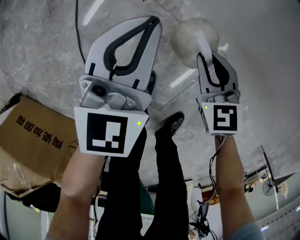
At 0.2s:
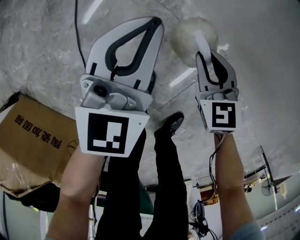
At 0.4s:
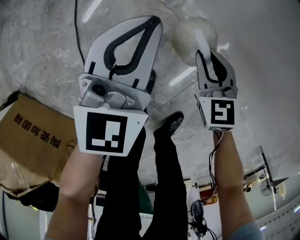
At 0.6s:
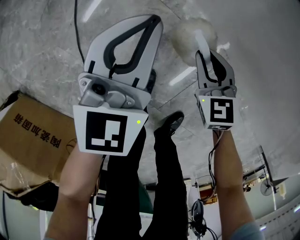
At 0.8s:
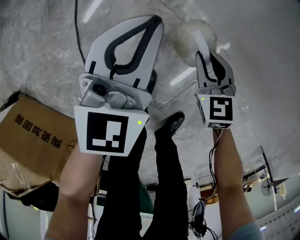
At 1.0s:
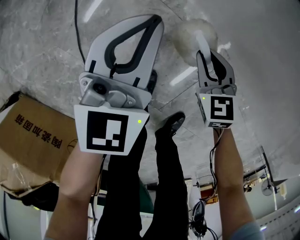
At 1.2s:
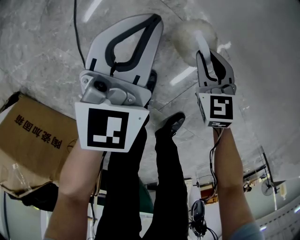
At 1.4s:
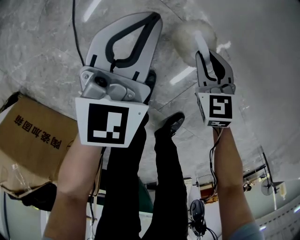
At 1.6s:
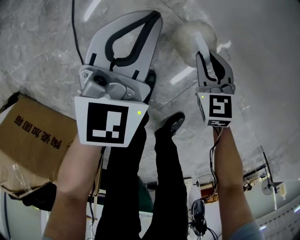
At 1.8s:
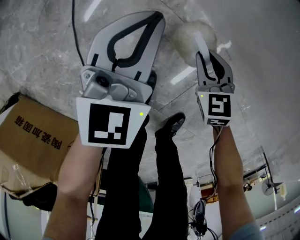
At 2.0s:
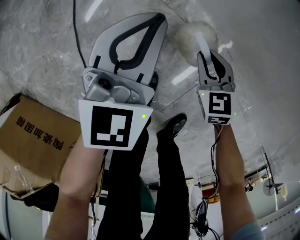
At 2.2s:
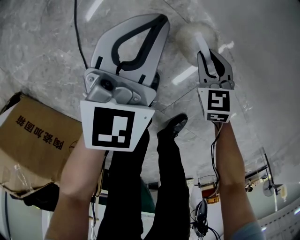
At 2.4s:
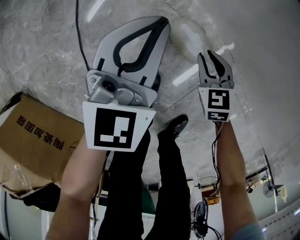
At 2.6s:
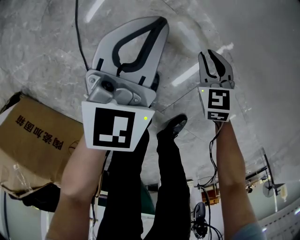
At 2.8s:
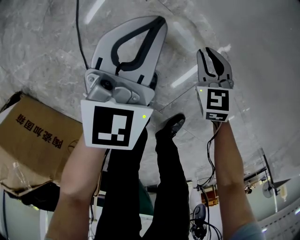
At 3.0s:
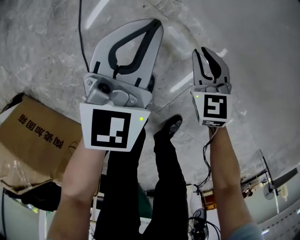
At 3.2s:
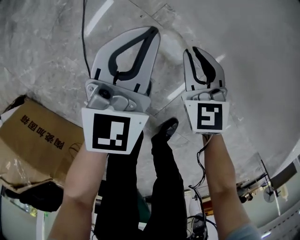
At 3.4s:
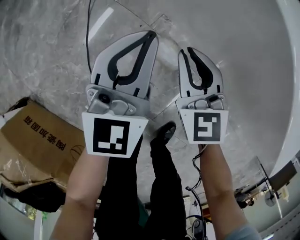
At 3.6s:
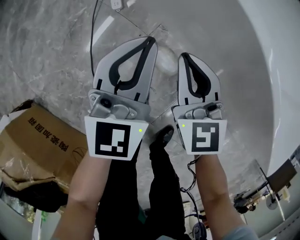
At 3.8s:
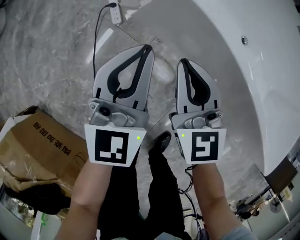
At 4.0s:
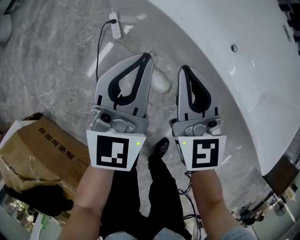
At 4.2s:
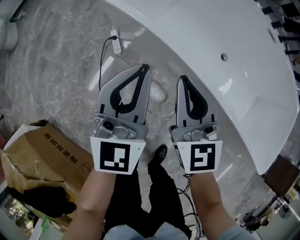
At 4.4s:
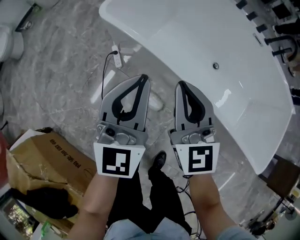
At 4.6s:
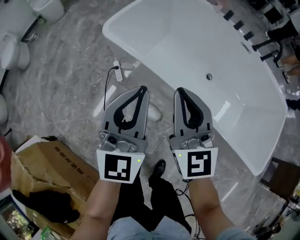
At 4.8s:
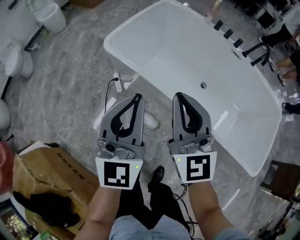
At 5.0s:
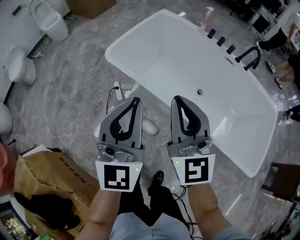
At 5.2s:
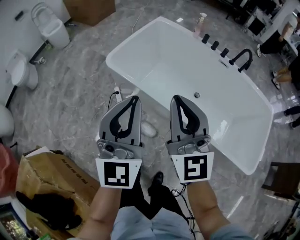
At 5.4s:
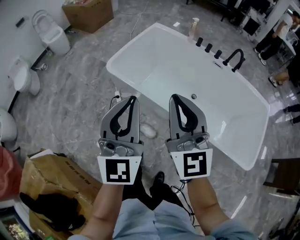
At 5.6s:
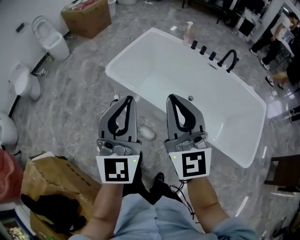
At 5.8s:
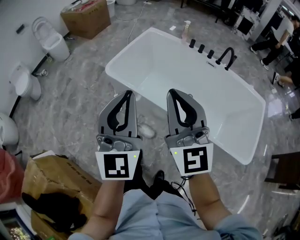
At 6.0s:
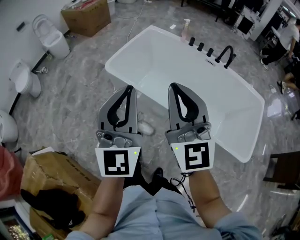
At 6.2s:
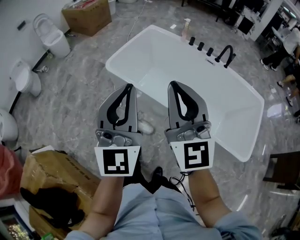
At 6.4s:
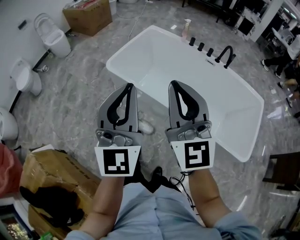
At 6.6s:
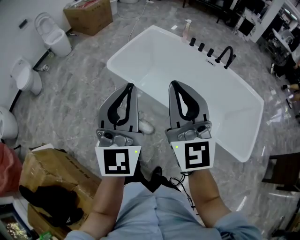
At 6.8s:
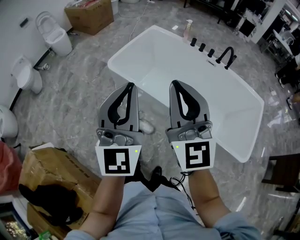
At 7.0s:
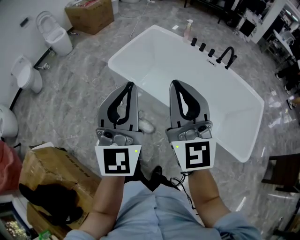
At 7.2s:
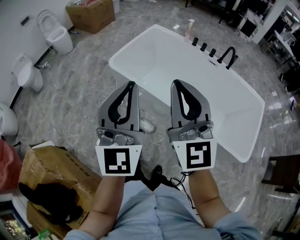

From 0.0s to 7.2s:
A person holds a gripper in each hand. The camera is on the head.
From 0.0s to 1.4s: The right gripper travels downward by roughly 5 cm.
From 1.4s to 2.8s: The grippers stay close to where they were, moving slightly.
From 2.8s to 4.4s: Both grippers move upward, approximately 60 cm. The right gripper tips its fingers upward by roughly 50 degrees; the left gripper turns by about 20 degrees.
From 4.4s to 5.8s: The two grippers go about 40 cm upward and backward. The right gripper swivels about 20 degrees.
From 5.8s to 7.2s: The grippers stay close to where they were, moving slightly.

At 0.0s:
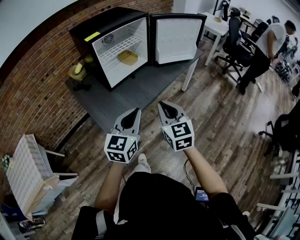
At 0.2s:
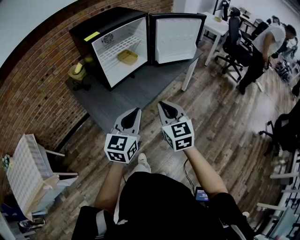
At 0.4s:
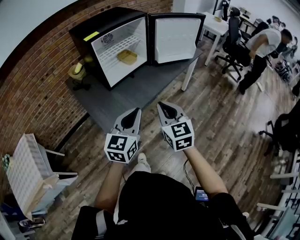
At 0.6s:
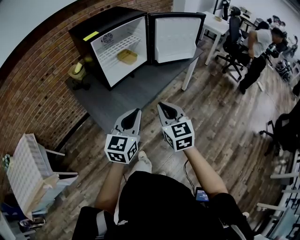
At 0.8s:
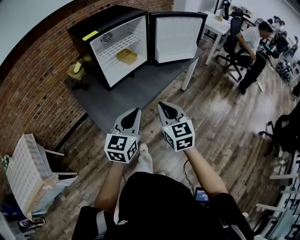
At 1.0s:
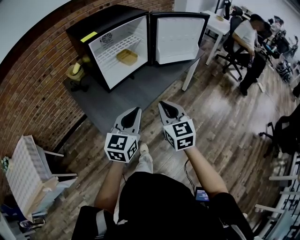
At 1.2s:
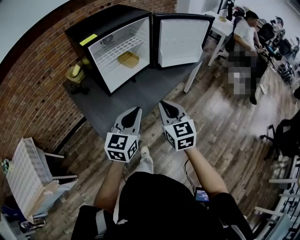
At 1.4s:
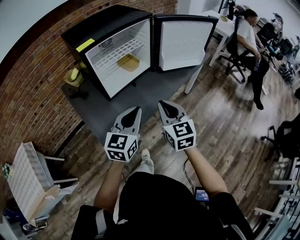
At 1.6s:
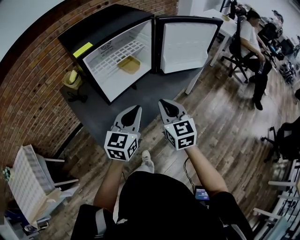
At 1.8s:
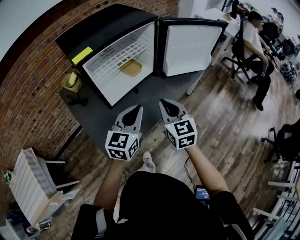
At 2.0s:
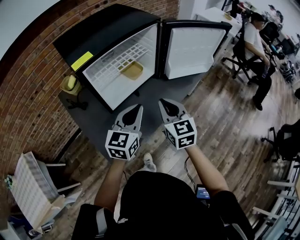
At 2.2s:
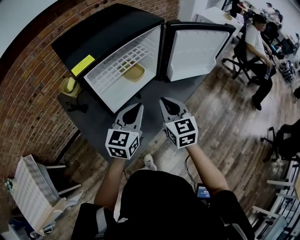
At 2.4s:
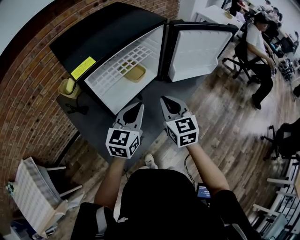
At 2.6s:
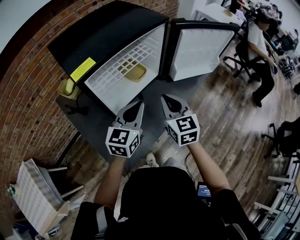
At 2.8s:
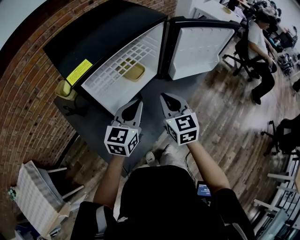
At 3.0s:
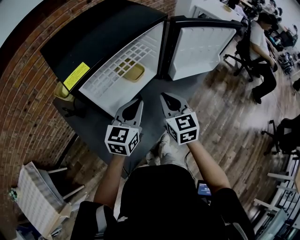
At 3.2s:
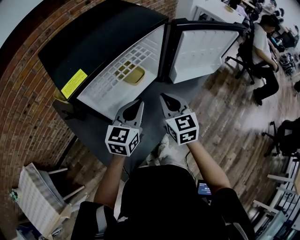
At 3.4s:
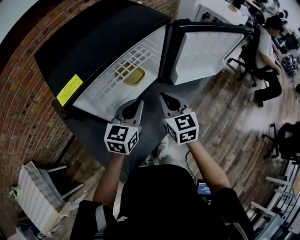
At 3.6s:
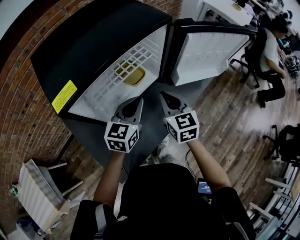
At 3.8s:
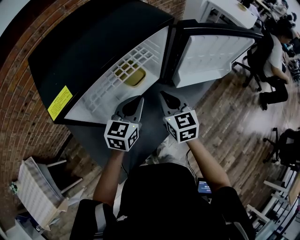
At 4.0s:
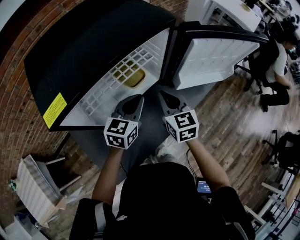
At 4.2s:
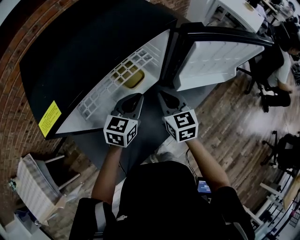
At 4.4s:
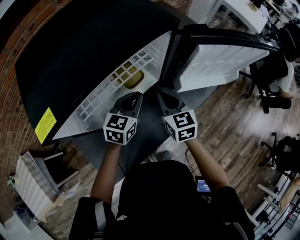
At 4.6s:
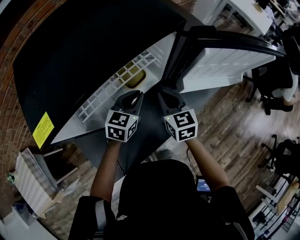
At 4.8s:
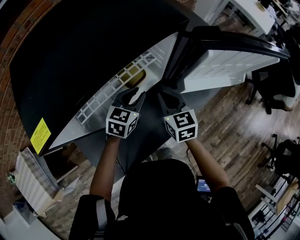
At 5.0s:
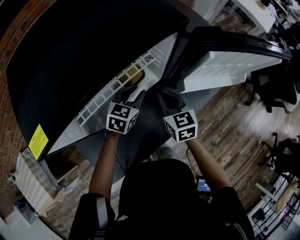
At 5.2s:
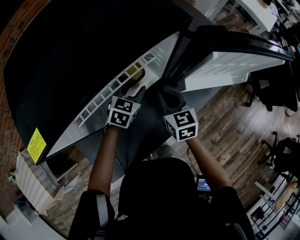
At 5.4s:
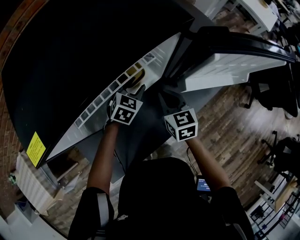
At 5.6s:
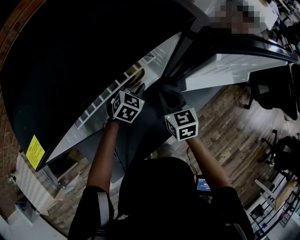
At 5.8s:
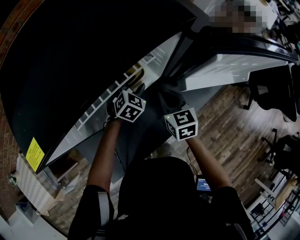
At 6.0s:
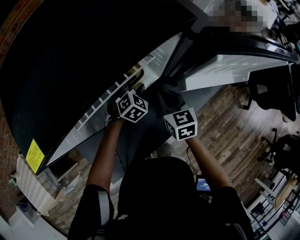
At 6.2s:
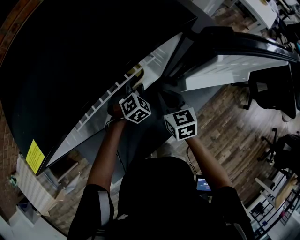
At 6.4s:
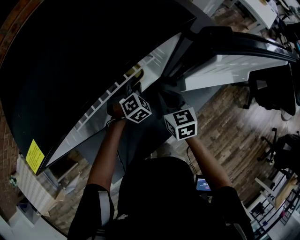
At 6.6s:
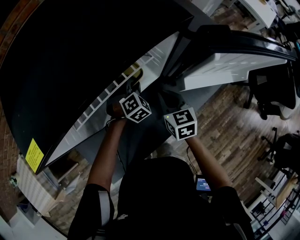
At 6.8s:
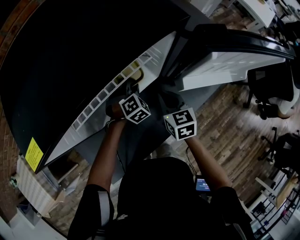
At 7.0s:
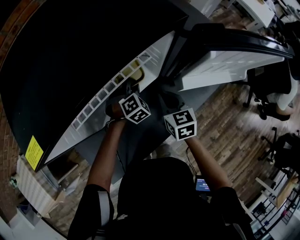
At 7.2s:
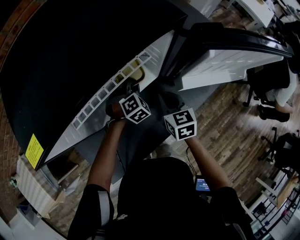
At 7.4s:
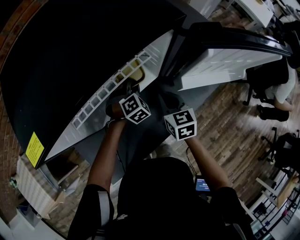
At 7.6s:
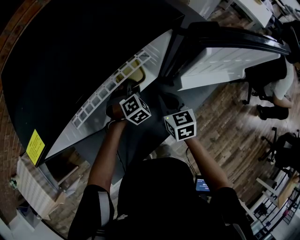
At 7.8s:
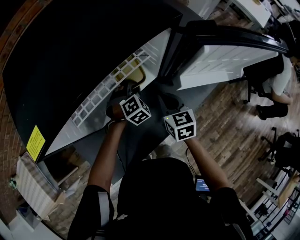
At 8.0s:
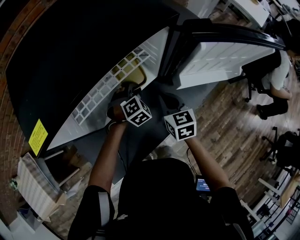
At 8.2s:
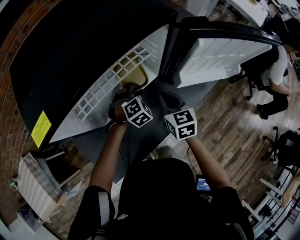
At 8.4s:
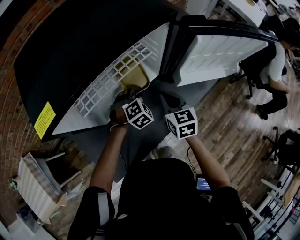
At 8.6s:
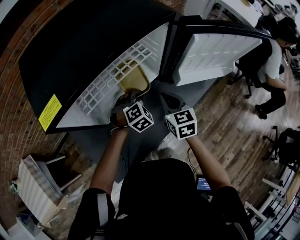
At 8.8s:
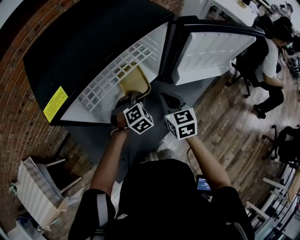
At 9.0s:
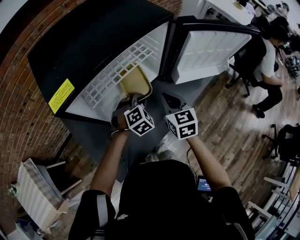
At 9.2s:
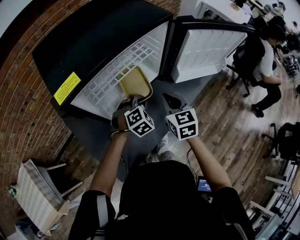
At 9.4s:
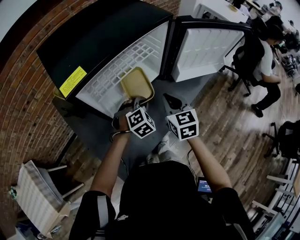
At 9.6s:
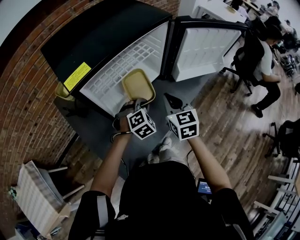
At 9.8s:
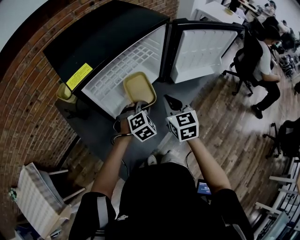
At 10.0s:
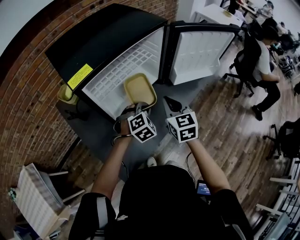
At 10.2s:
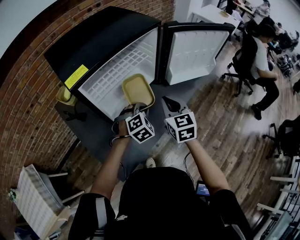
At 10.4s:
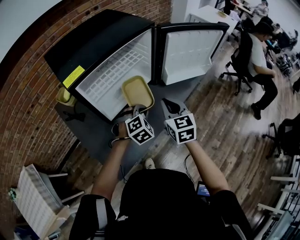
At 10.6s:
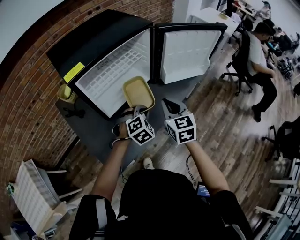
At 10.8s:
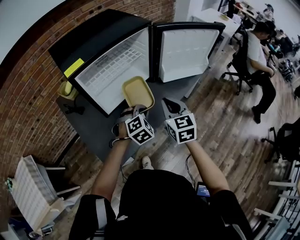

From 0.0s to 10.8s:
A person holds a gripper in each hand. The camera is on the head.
From 0.0s to 1.6s: The two grippers go some 20 cm forward.
From 1.6s to 3.0s: The grippers both shift forward by about 15 cm.
From 3.0s to 4.6s: The two grippers go some 20 cm forward and downward.
From 4.6s to 6.2s: The left gripper shifts some 15 cm downward and forward, twists some 40 degrees clockwise, seen from behind, and opens its fingers, while the right gripper heads downward, covering about 5 cm.
From 6.2s to 7.8s: The left gripper closes.
From 7.8s to 9.2s: The two grippers go about 15 cm backward and upward.
From 9.2s to 10.8s: The right gripper shifts some 15 cm backward, upward and to the right. Meanwhile the left gripper moves backward, to the right and upward, approximately 15 cm.

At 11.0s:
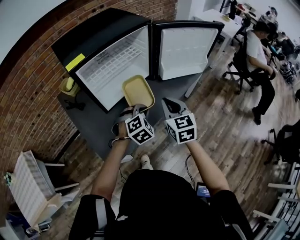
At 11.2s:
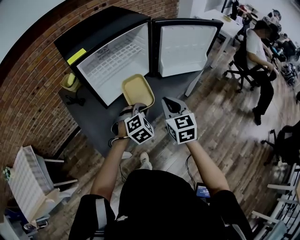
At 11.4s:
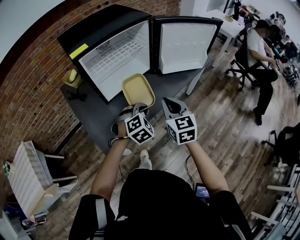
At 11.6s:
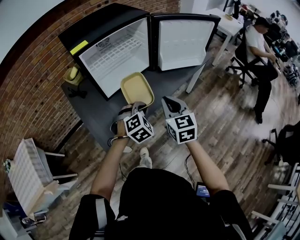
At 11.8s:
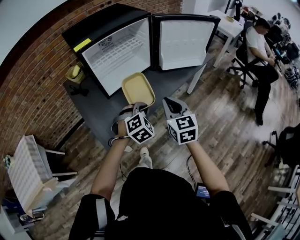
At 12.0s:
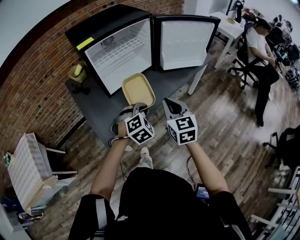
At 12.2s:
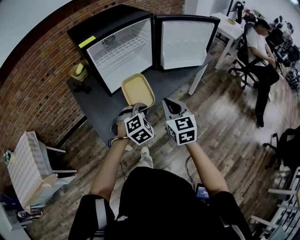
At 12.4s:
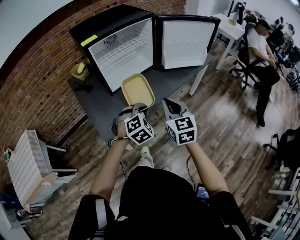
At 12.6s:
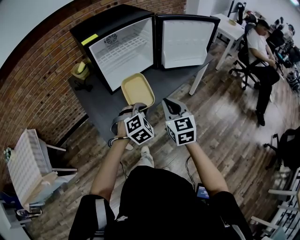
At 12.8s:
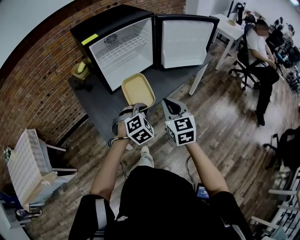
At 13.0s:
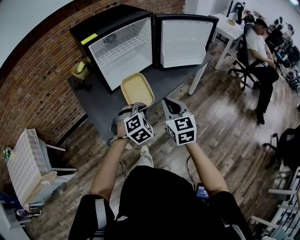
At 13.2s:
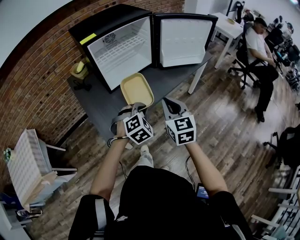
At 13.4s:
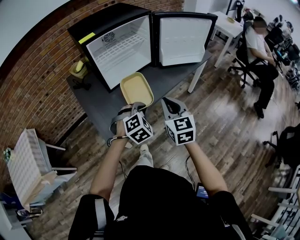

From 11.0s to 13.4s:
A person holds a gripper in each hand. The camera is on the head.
From 11.0s to 12.2s: Both grippers move backward, some 15 cm.
From 12.2s to 13.4s: The grippers move only a little.

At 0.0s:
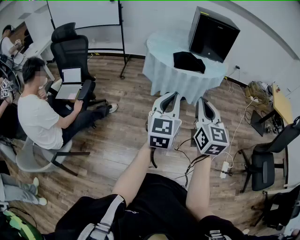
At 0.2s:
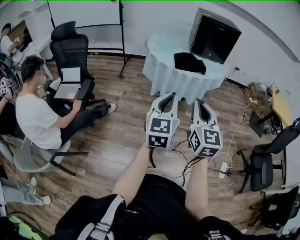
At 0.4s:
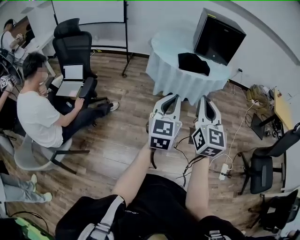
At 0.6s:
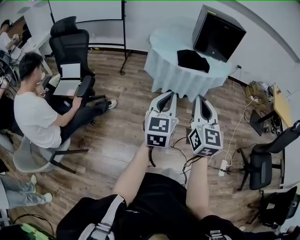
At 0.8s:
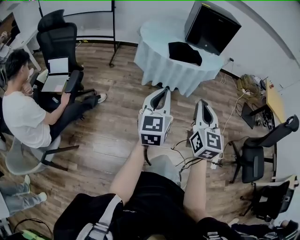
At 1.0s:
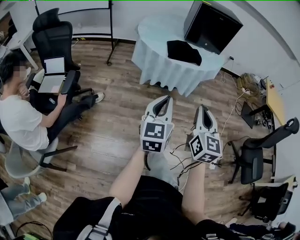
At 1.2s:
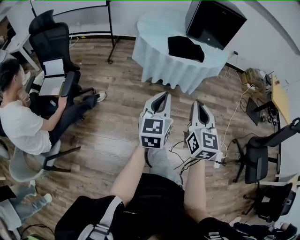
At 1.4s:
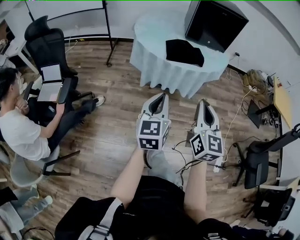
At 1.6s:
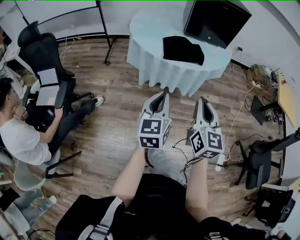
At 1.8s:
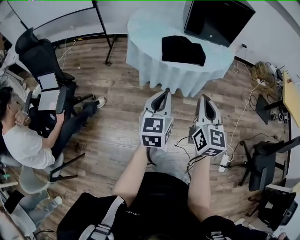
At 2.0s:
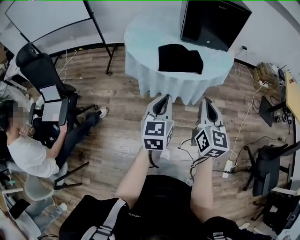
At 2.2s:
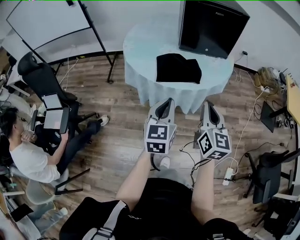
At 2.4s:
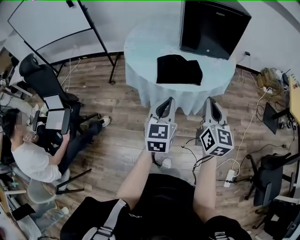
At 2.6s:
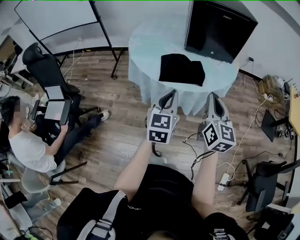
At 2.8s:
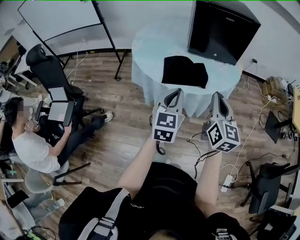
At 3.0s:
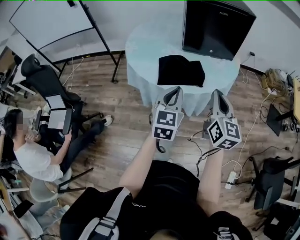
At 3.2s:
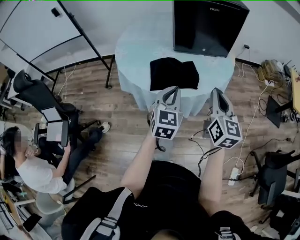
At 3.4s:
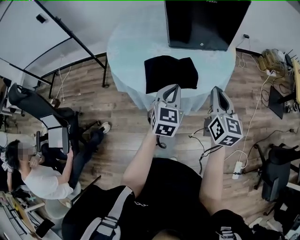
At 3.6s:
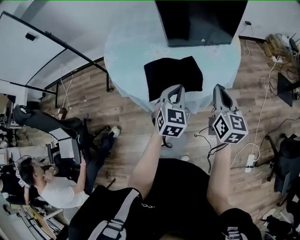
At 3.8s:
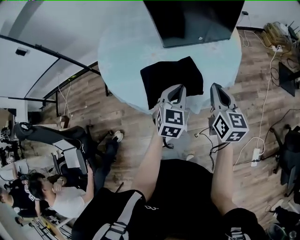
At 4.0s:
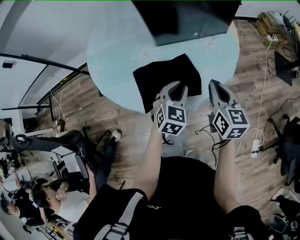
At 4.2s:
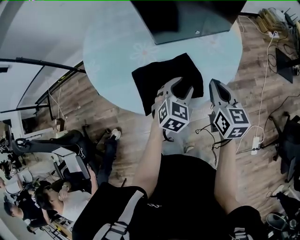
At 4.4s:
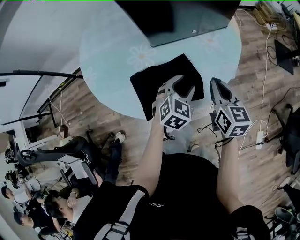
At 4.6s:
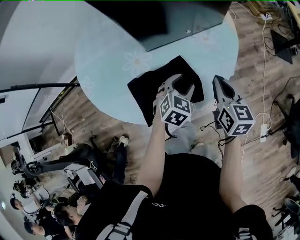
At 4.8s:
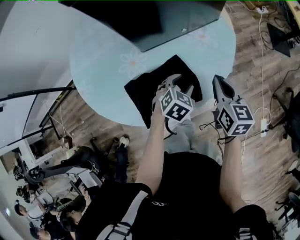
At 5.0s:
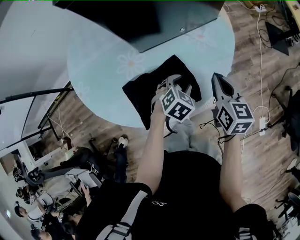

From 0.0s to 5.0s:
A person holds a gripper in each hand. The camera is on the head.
From 0.0s to 1.6s: The two grippers go some 20 cm forward and downward.
From 1.6s to 3.4s: The grippers both shift forward and to the right by about 35 cm. The left gripper changes its angle by approximately 30 degrees.
From 3.4s to 5.0s: The right gripper heads forward and downward, covering roughly 20 cm, and rotates approximately 20 degrees, while the left gripper goes some 25 cm downward and forward, angles its fingers downward, by approximately 40 degrees, and opens.
